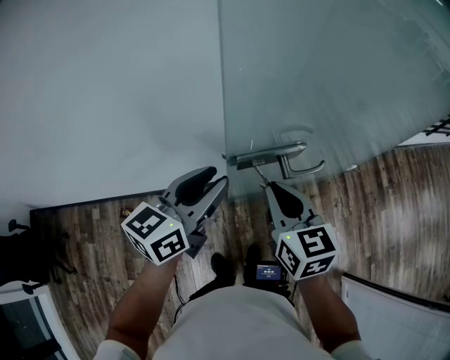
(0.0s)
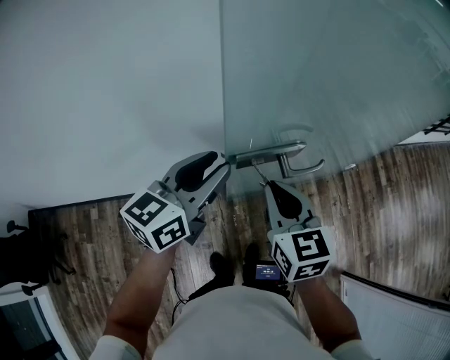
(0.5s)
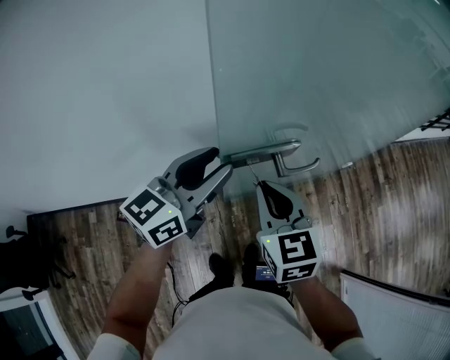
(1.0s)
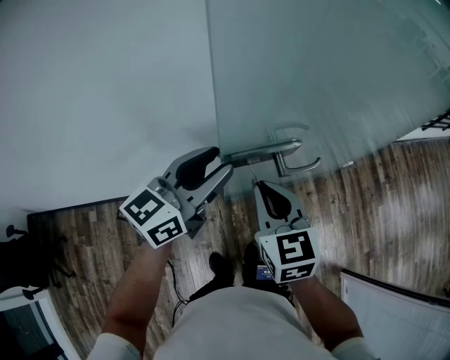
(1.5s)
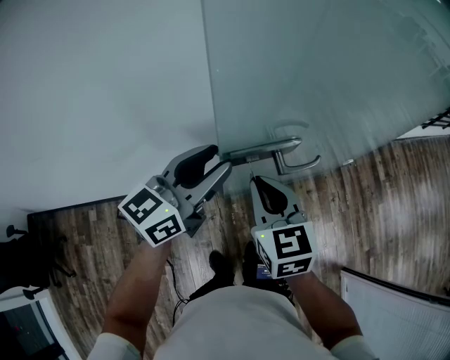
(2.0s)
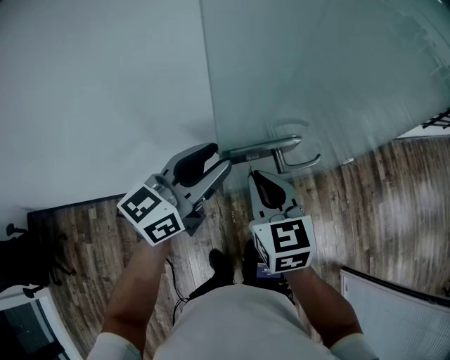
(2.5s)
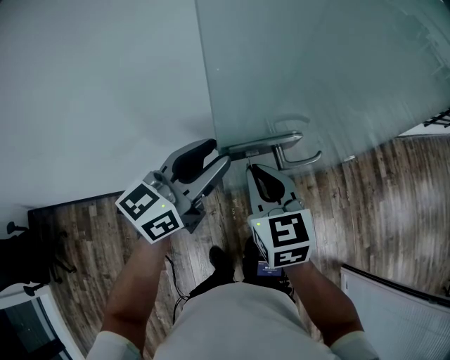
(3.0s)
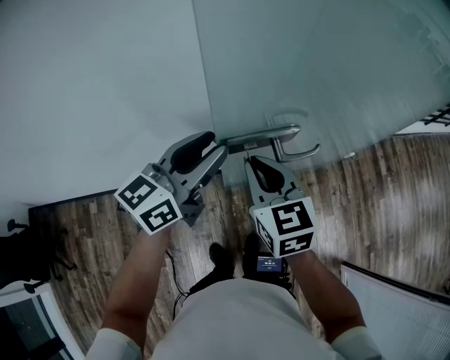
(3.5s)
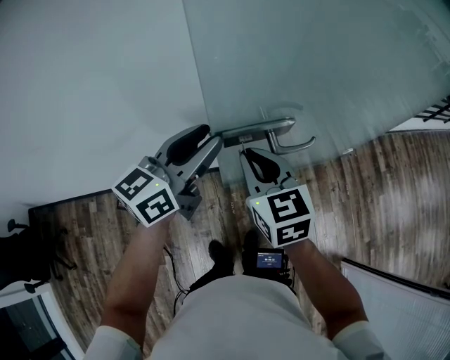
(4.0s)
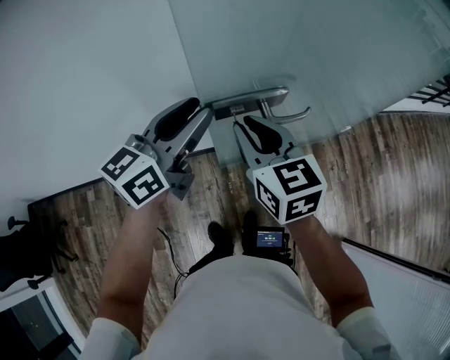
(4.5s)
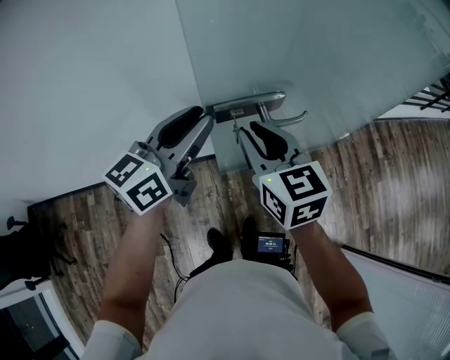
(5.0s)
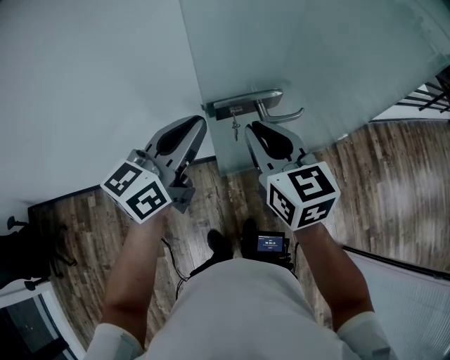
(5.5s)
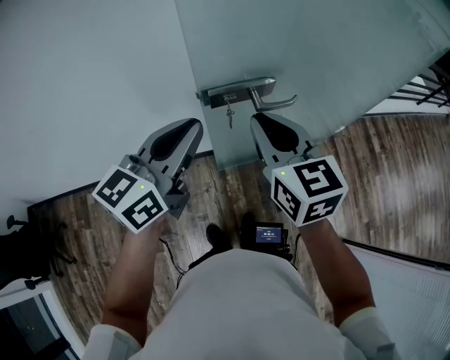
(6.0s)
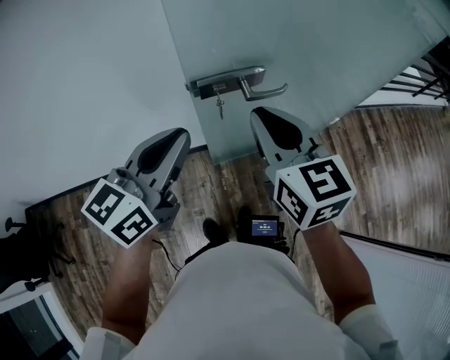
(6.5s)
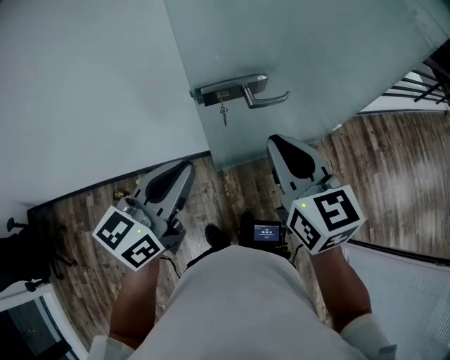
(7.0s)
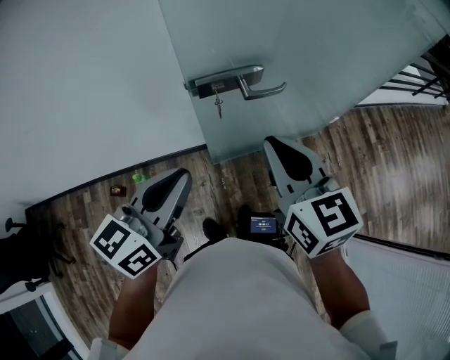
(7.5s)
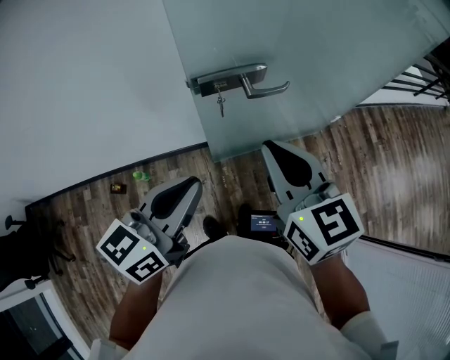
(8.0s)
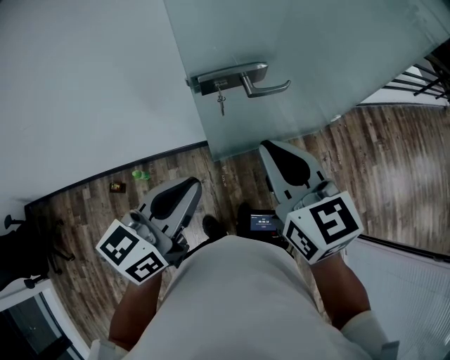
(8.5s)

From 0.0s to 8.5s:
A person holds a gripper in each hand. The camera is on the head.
From 0.0s to 4.0s: There are only small adjustments of the grippers.
From 4.0s to 6.5s: The left gripper goes approximately 10 cm backward, and closes its fingers. The right gripper shifts approximately 10 cm upward, to the right and backward.
From 6.5s to 8.5s: Both grippers move backward, roughly 5 cm.

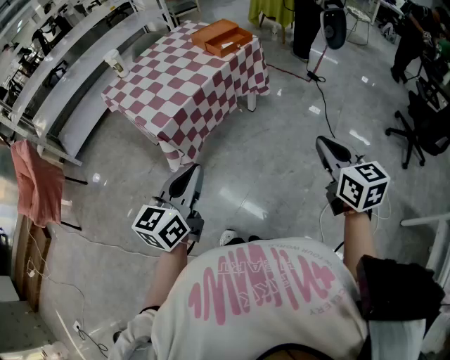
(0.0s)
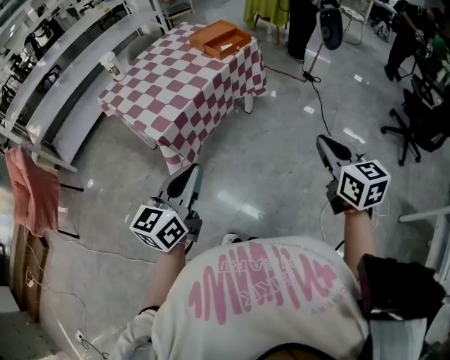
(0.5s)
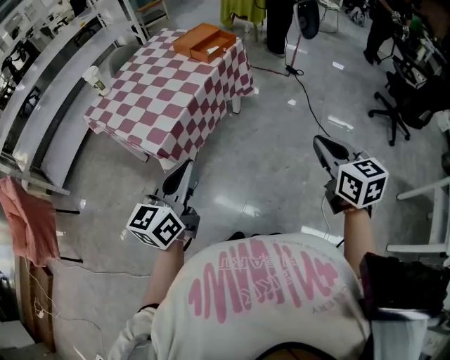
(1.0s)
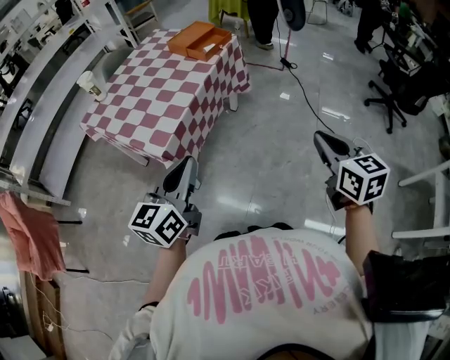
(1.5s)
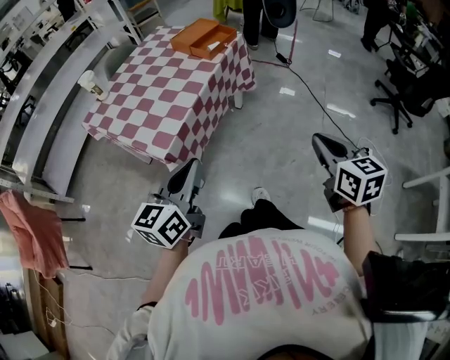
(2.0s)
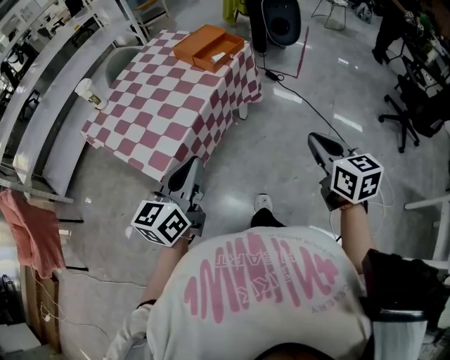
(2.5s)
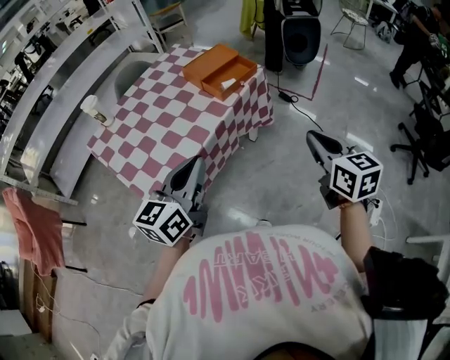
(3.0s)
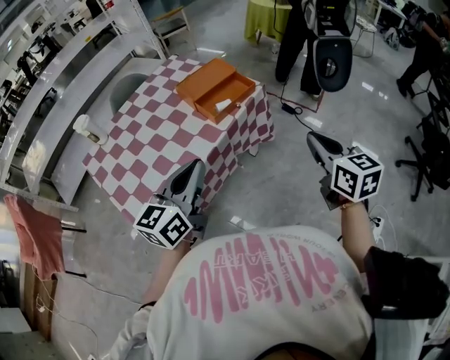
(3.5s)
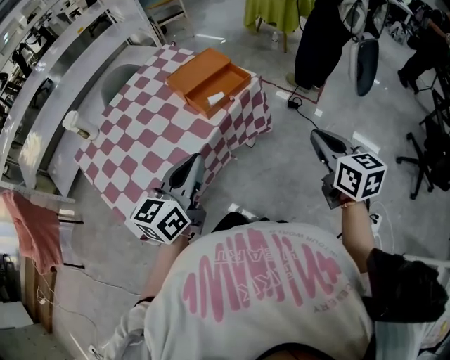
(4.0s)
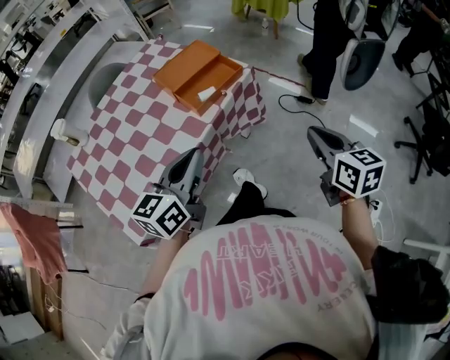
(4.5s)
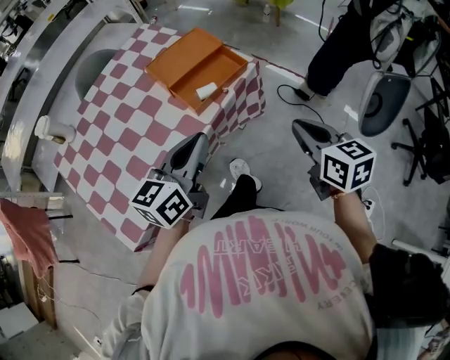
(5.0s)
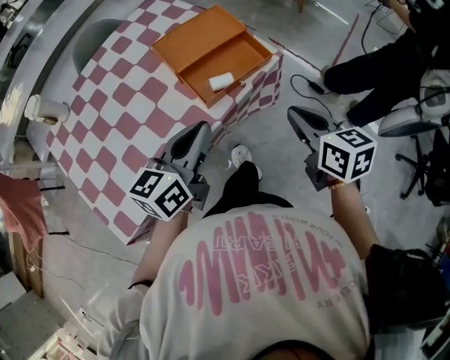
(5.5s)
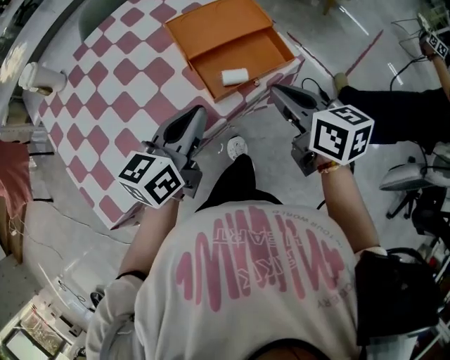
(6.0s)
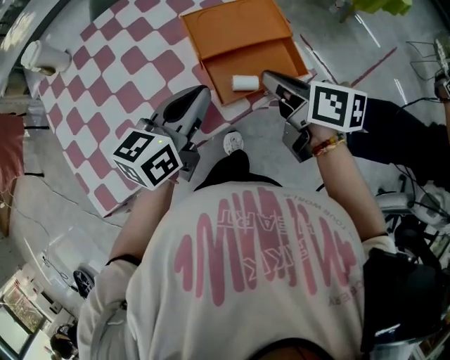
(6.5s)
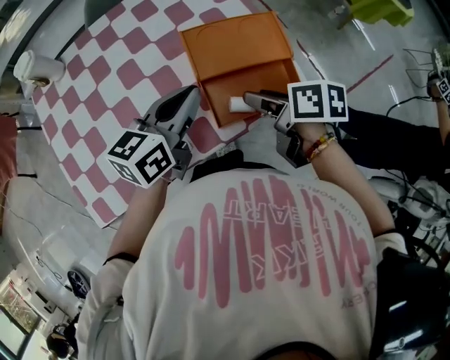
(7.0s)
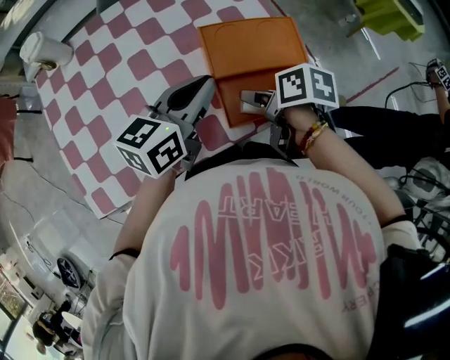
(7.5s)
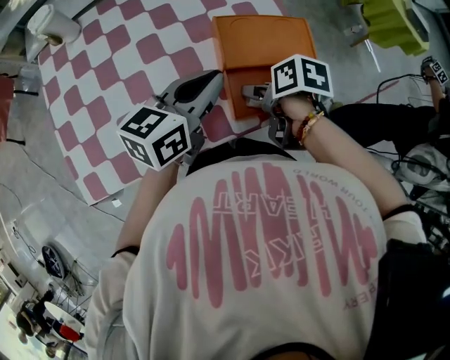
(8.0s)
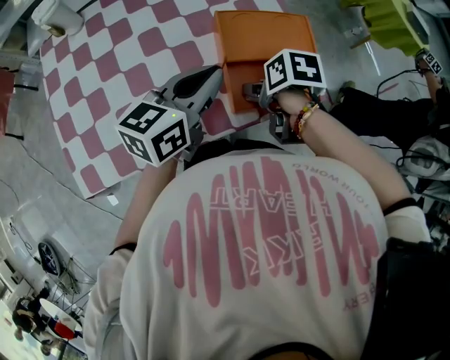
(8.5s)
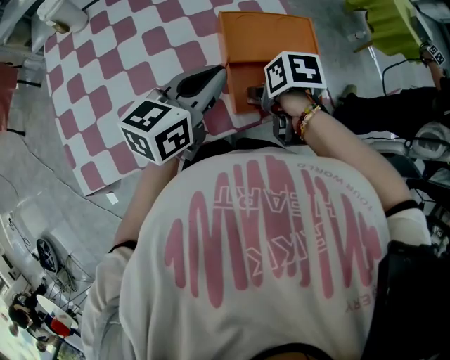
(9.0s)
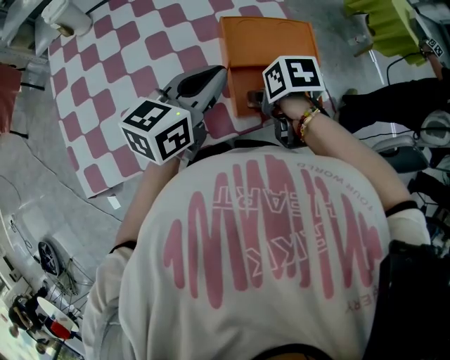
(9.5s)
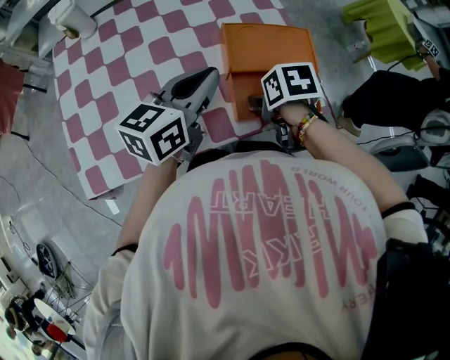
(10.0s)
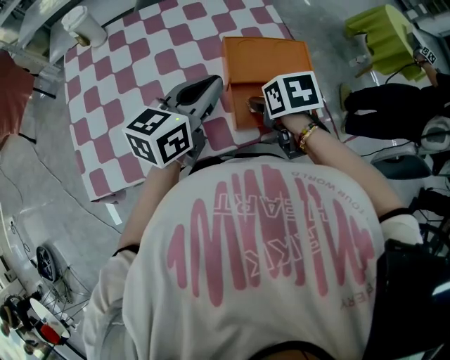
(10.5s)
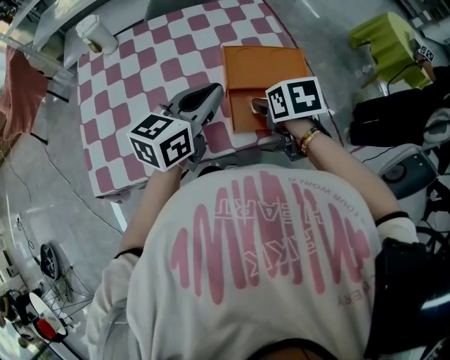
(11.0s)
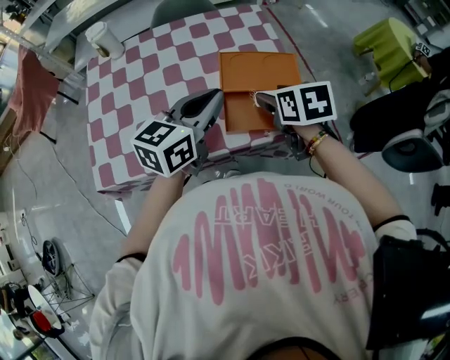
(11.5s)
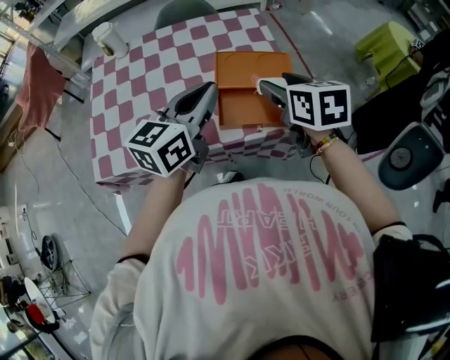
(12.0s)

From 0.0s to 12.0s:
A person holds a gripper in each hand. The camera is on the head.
From 0.0s to 2.0s: The right gripper goes approximately 10 cm to the left, while the left gripper moves to the left and forward, about 15 cm.
From 2.0s to 4.0s: The grippers both shift forward by some 40 cm.
From 4.0s to 6.0s: The left gripper is displaced forward and downward by roughly 20 cm, while the right gripper moves forward and to the left, about 30 cm, and turns by approximately 30 degrees.
From 6.0s to 8.0s: The right gripper shifts about 15 cm forward, downward and to the left, angles its fingers downward, by roughly 40 degrees, and opens up. The left gripper is displaced forward by roughly 10 cm.
From 8.0s to 10.0s: The right gripper turns by roughly 20 degrees.
From 10.0s to 12.0s: The right gripper travels upward by some 20 cm, and tips its fingers upward by roughly 40 degrees; the left gripper heads upward, backward and to the right, covering some 15 cm.

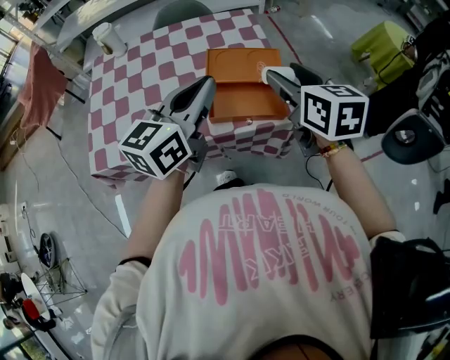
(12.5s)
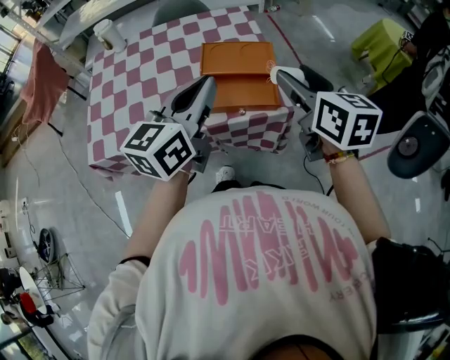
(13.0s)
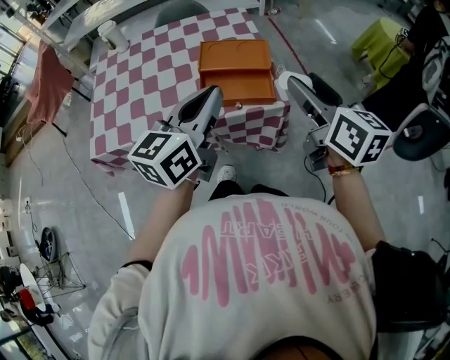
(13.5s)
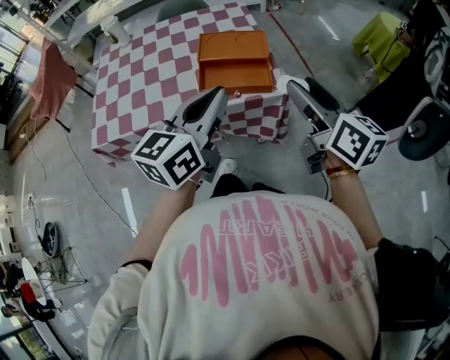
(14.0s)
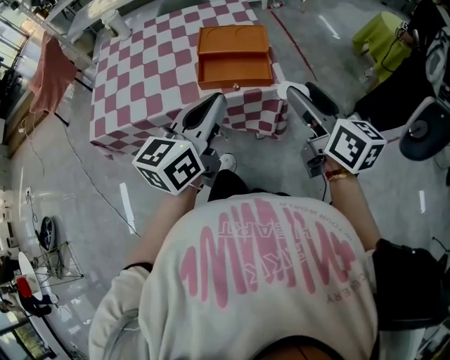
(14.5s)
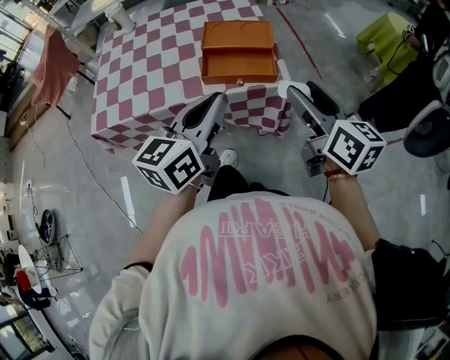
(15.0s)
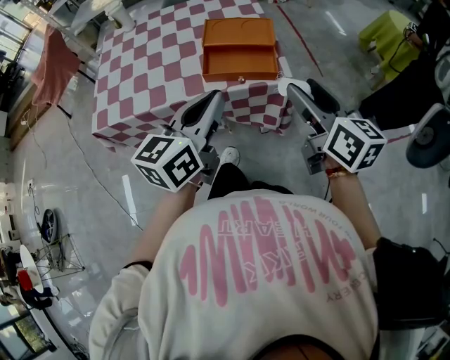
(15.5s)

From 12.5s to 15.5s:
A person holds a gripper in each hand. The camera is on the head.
From 12.5s to 14.0s: Both grippers move backward and to the right, about 15 cm. The right gripper turns by about 20 degrees.
From 14.0s to 15.5s: There are only small adjustments of the grippers.

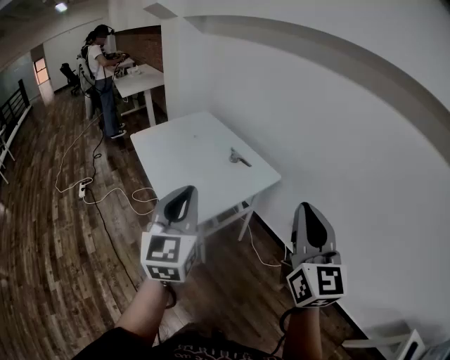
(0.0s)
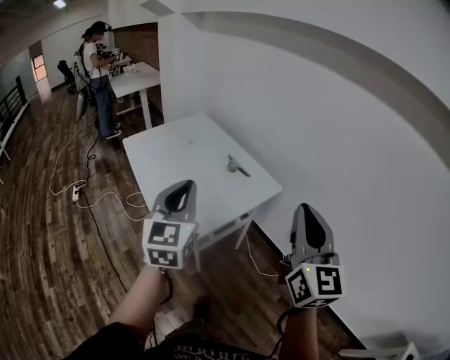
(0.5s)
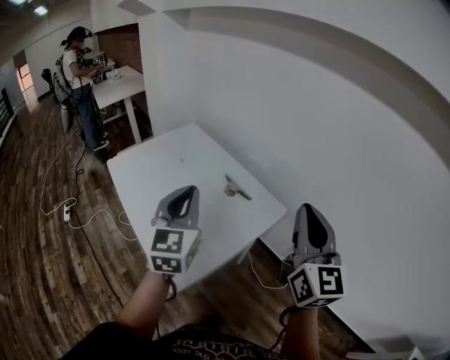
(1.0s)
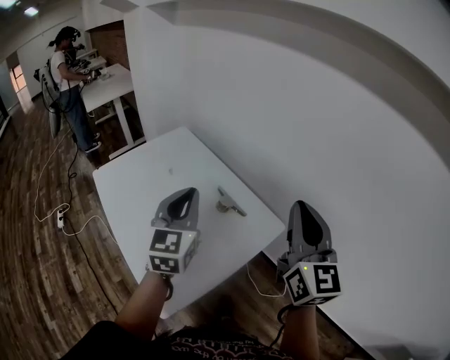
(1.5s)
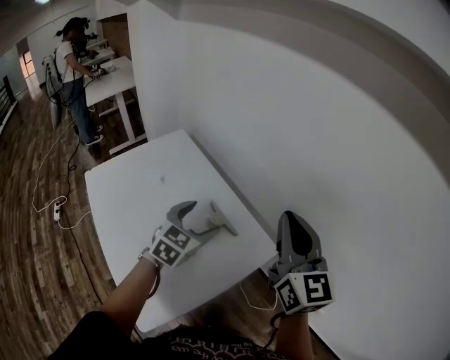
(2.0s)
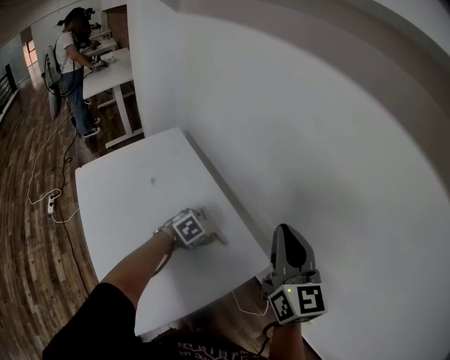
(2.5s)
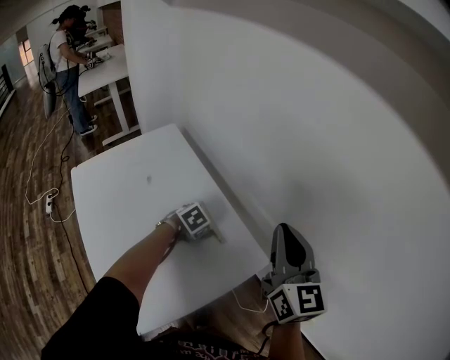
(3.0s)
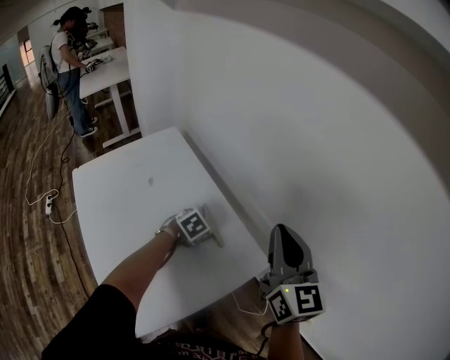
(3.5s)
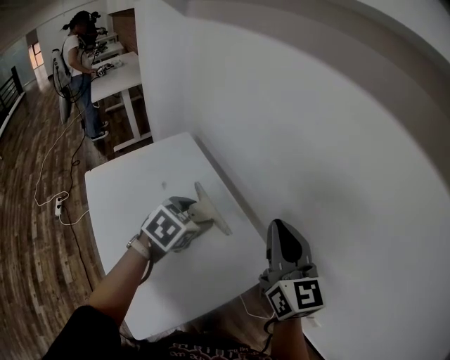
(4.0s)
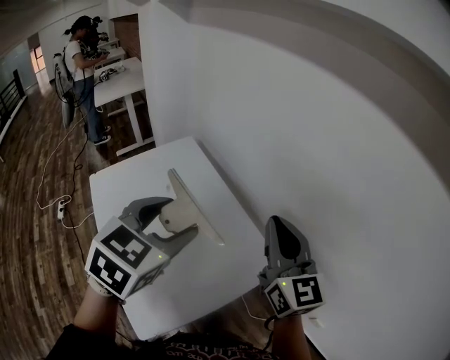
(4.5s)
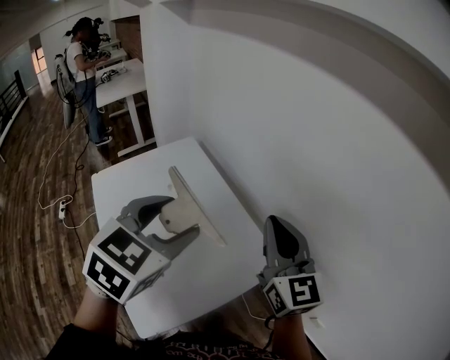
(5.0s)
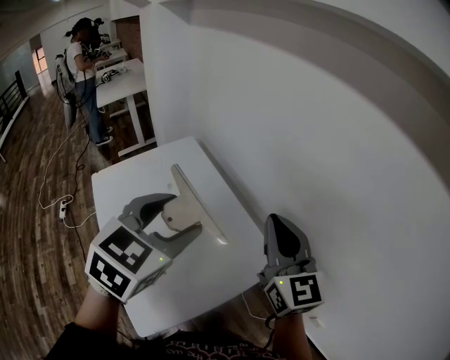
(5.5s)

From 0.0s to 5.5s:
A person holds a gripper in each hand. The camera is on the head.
From 0.0s to 2.0s: The left gripper heads forward and downward, covering some 50 cm, rotates roughly 40 degrees, and opens up. The right gripper shifts approximately 40 cm forward.
From 2.0s to 3.5s: The right gripper ends up roughly 5 cm from where it was. The left gripper heads downward and forward, covering about 20 cm, and angles its fingers downward, by approximately 40 degrees.
From 3.5s to 5.5s: The left gripper shifts approximately 35 cm upward, and tips its fingers upward by approximately 30 degrees. The right gripper is displaced to the left by approximately 5 cm.
